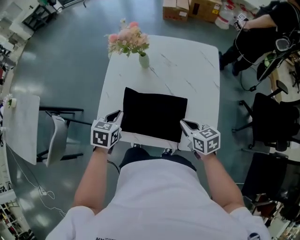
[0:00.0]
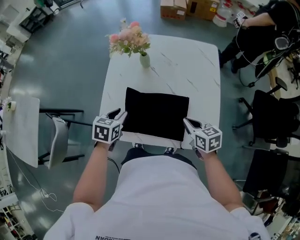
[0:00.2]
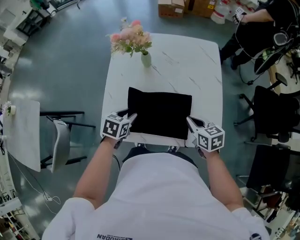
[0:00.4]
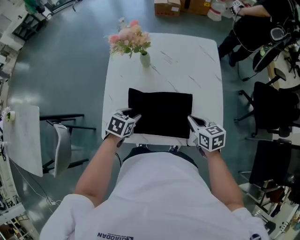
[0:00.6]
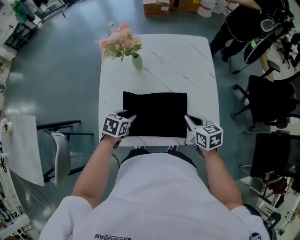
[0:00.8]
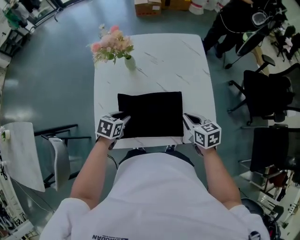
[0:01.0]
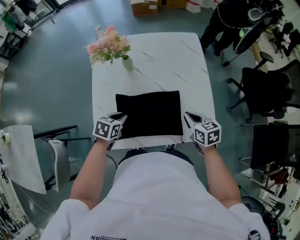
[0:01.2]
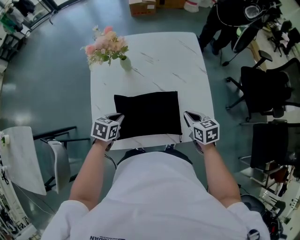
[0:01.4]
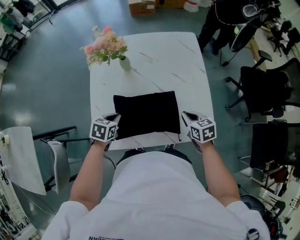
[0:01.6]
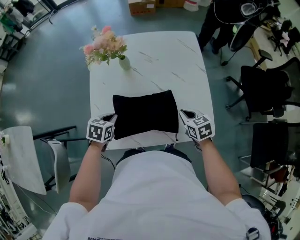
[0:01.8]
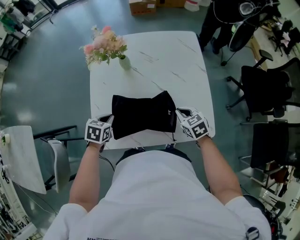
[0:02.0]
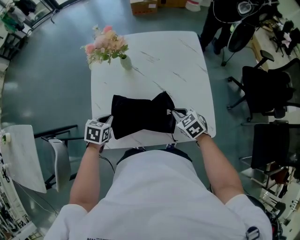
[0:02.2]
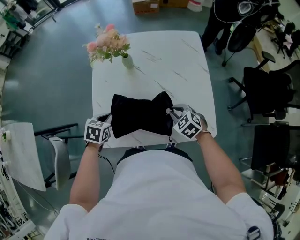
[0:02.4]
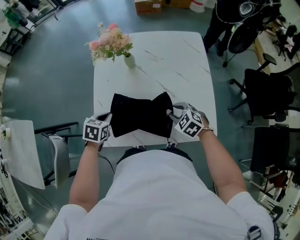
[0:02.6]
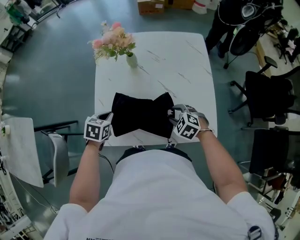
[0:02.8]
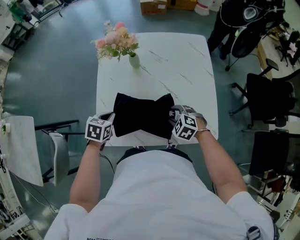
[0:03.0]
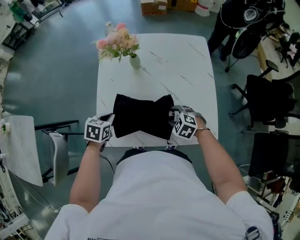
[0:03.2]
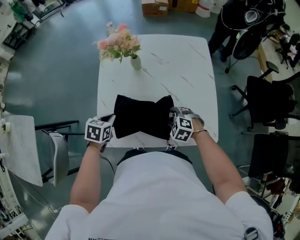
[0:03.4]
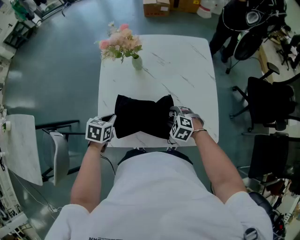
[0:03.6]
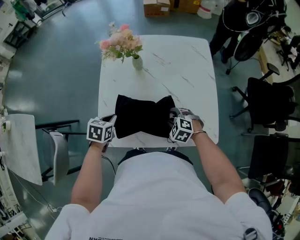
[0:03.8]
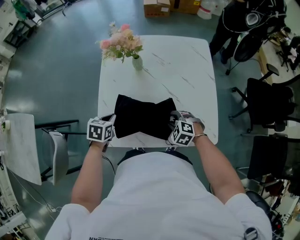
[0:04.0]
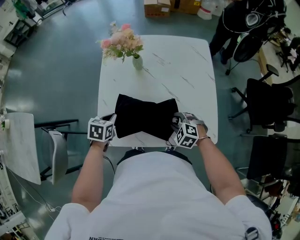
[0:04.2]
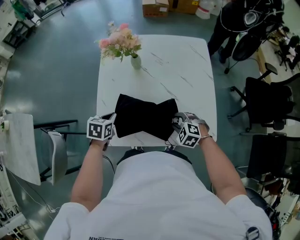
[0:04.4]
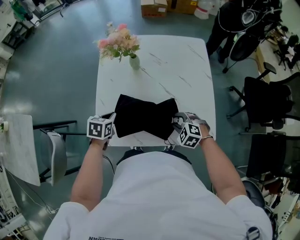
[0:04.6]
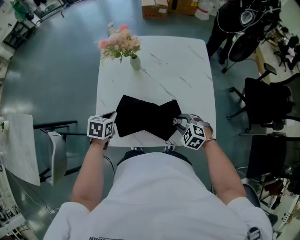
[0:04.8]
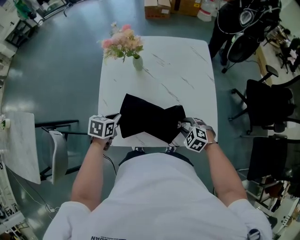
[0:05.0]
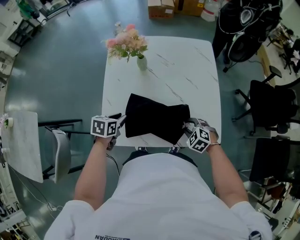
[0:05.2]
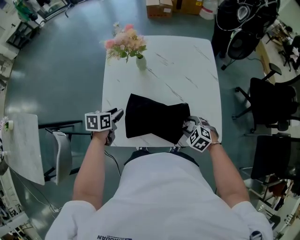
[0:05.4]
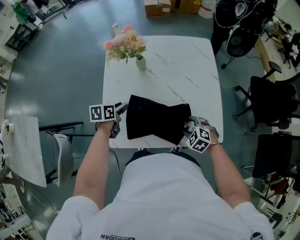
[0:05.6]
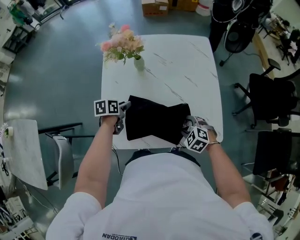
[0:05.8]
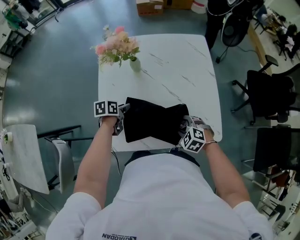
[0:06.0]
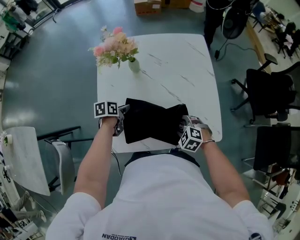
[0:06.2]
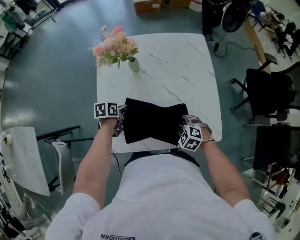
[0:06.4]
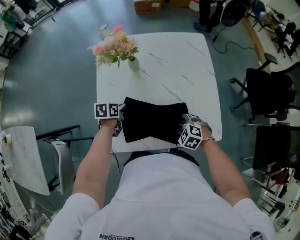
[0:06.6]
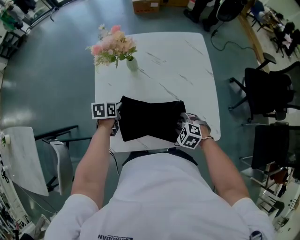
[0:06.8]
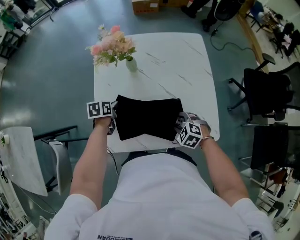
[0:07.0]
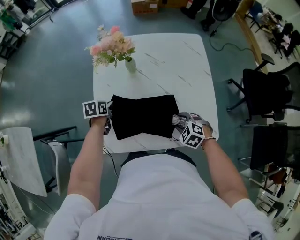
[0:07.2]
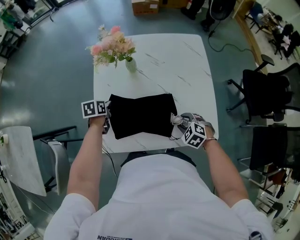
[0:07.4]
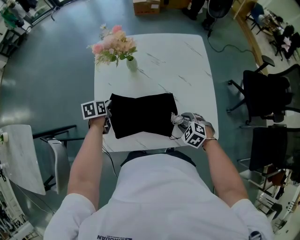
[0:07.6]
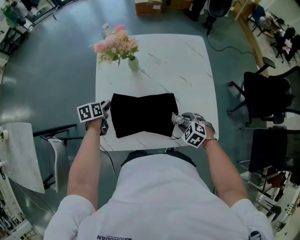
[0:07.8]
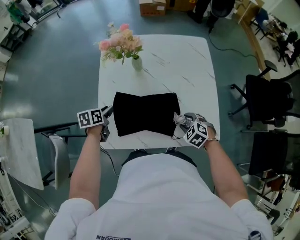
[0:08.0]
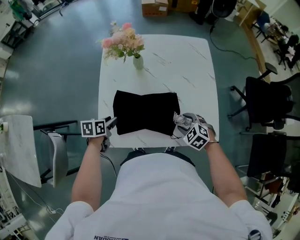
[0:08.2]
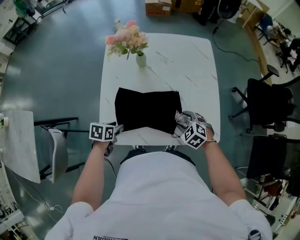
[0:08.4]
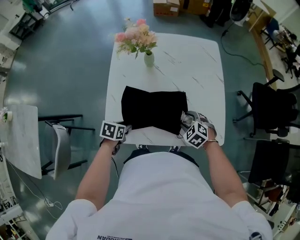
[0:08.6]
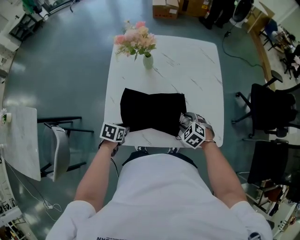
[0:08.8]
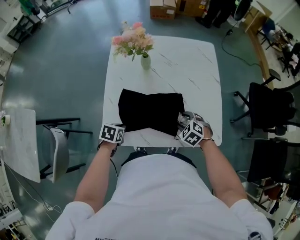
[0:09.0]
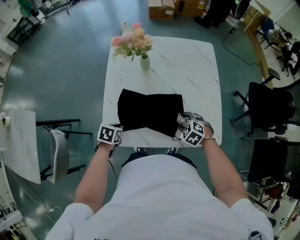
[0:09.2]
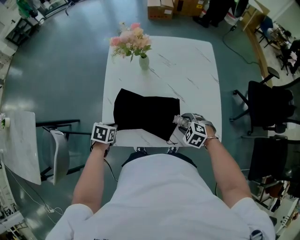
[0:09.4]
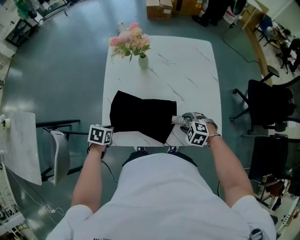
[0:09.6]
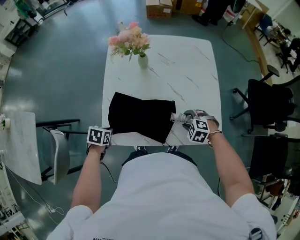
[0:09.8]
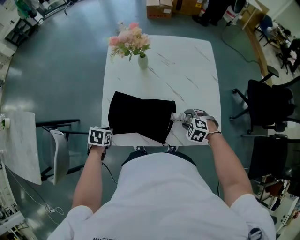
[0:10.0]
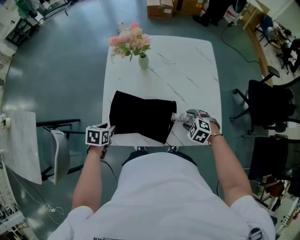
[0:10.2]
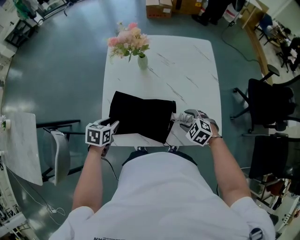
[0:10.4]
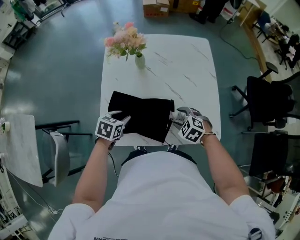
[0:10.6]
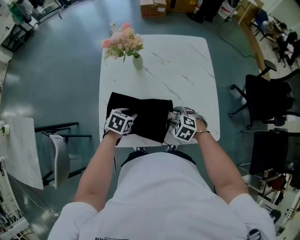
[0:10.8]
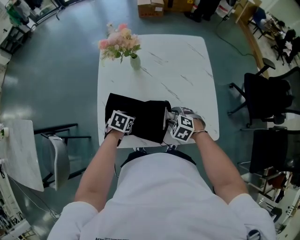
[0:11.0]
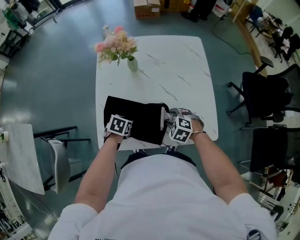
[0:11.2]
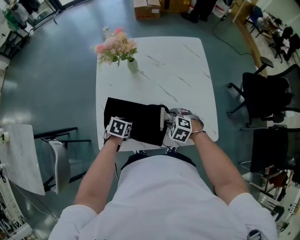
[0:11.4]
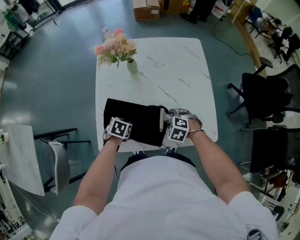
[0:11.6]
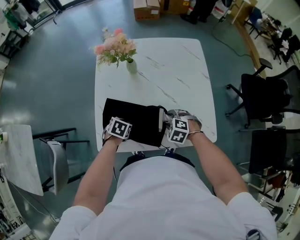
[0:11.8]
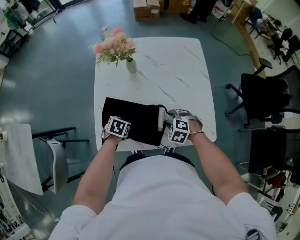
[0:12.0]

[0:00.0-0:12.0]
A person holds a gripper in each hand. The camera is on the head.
0:00.0 to 0:01.6: The right gripper ends up approximately 5 cm from where it was. The left gripper moves downward, roughly 5 cm, rotates roughly 20 degrees, and opens, then closes once more.
0:01.6 to 0:03.0: The left gripper shifts about 5 cm to the left. Meanwhile the right gripper heads to the left, covering roughly 10 cm, rotates around the line of its fingers by approximately 50 degrees, counterclockwise from behind, and opens its fingers.
0:03.0 to 0:04.4: The grippers move only a little.
0:04.4 to 0:06.0: The left gripper shifts approximately 10 cm forward and downward, swivels approximately 30 degrees, and opens.
0:06.0 to 0:07.6: The left gripper moves to the left, roughly 5 cm, and closes its fingers.
0:07.6 to 0:09.0: The left gripper goes about 15 cm backward, turns by some 20 degrees, and opens, then closes once more.
0:09.0 to 0:10.4: The left gripper moves upward, about 5 cm, and opens.
0:10.4 to 0:12.0: The right gripper ends up approximately 5 cm from where it was. The left gripper is displaced to the right and downward by some 10 cm, and closes.

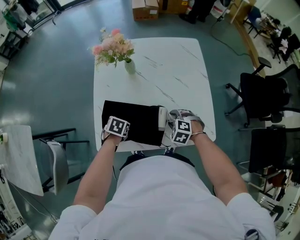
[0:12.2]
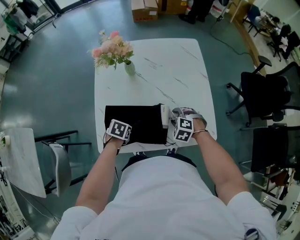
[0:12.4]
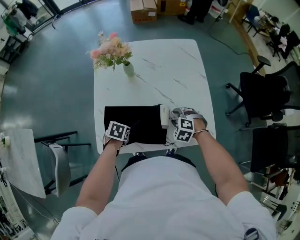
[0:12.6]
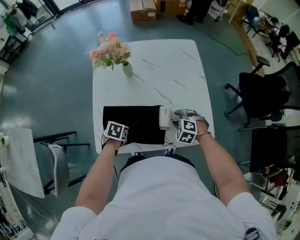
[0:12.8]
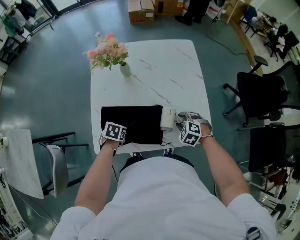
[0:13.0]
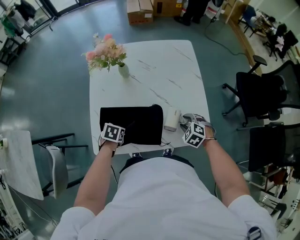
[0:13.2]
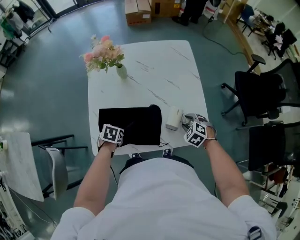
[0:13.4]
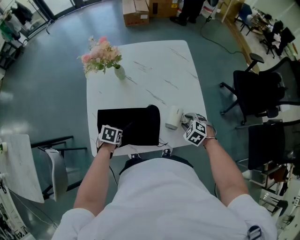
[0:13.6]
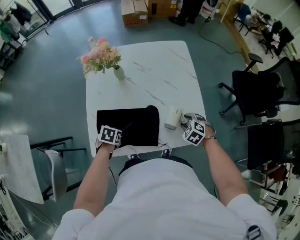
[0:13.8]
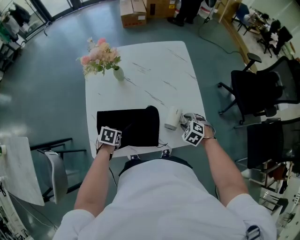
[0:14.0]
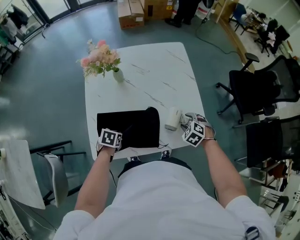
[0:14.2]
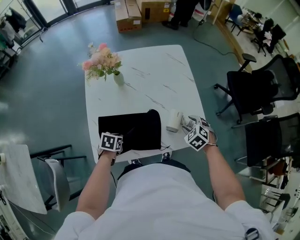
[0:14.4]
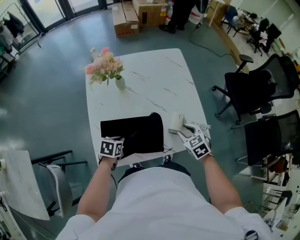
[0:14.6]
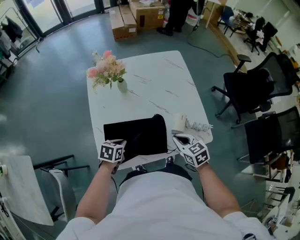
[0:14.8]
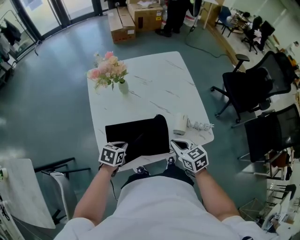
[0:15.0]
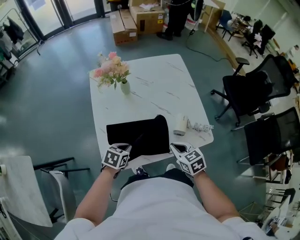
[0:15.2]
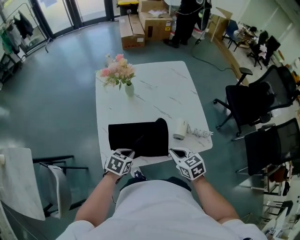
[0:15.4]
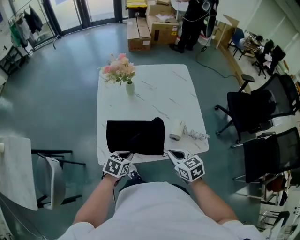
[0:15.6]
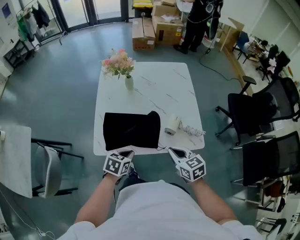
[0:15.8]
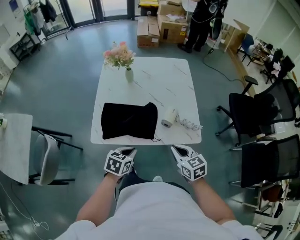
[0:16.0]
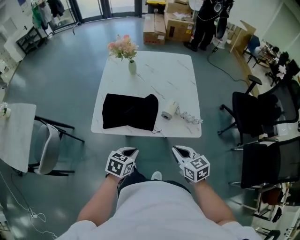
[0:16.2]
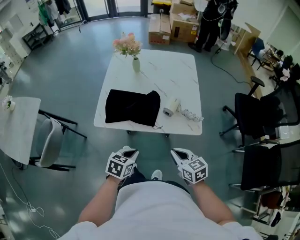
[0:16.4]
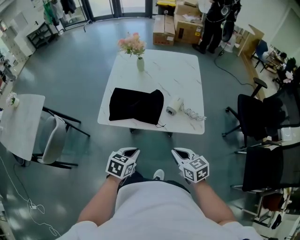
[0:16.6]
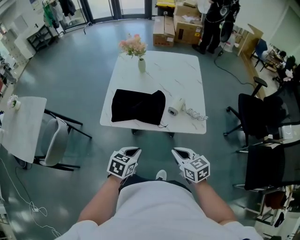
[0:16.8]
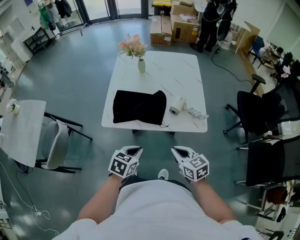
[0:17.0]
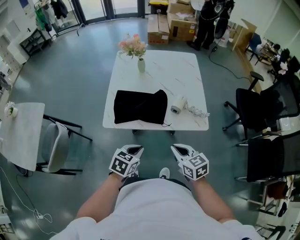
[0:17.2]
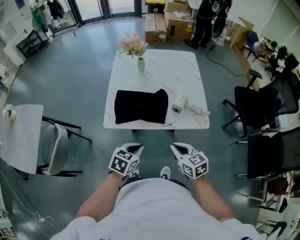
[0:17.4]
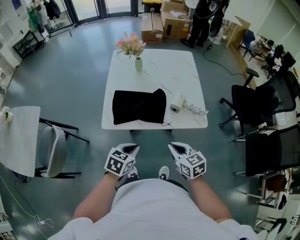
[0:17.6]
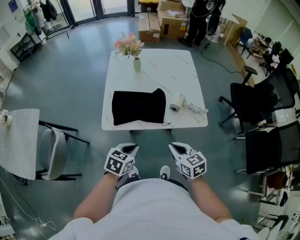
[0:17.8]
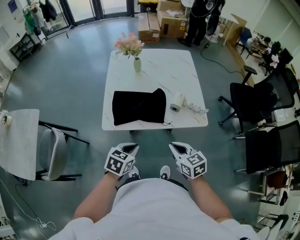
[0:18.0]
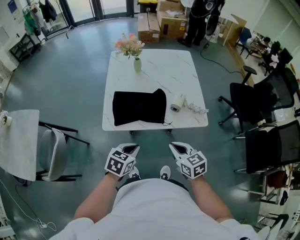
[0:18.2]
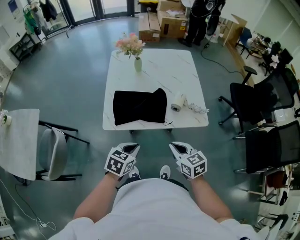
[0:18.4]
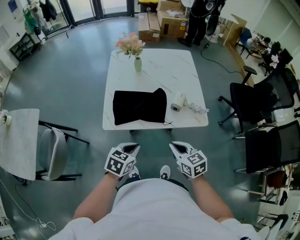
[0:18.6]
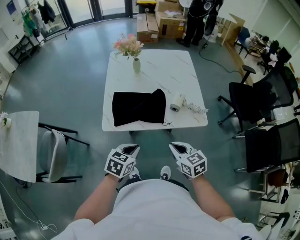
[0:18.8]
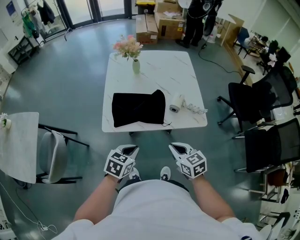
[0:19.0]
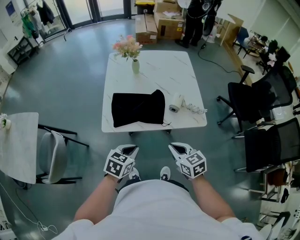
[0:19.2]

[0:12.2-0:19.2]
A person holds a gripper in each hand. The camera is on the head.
0:12.2 to 0:13.6: The right gripper heads to the right, covering roughly 10 cm.
0:13.6 to 0:15.0: The left gripper heads upward, covering some 5 cm, and swivels roughly 20 degrees. The right gripper moves to the left, upward and backward, about 20 cm, rolls clockwise, seen from behind, by approximately 40 degrees, and closes.
0:15.0 to 0:16.4: The grippers both shift backward and to the right by roughly 25 cm.
0:16.4 to 0:17.8: Both grippers travel together to the left, about 10 cm.
0:17.8 to 0:19.2: The two grippers keep their place.

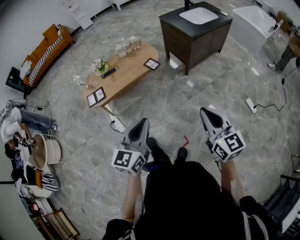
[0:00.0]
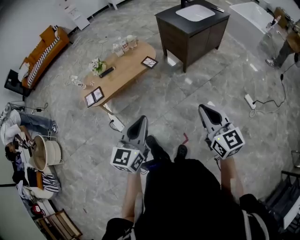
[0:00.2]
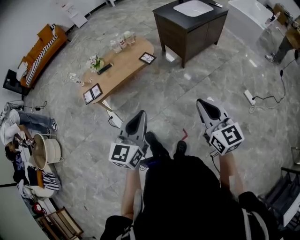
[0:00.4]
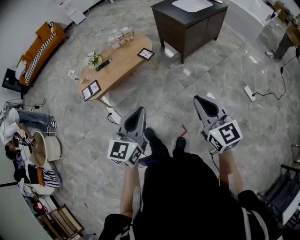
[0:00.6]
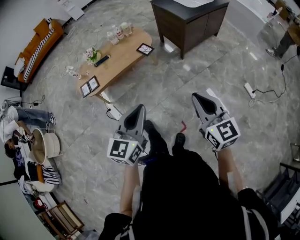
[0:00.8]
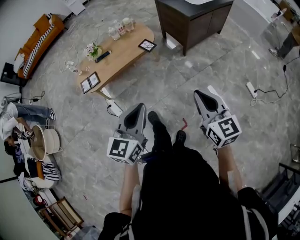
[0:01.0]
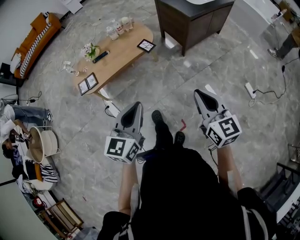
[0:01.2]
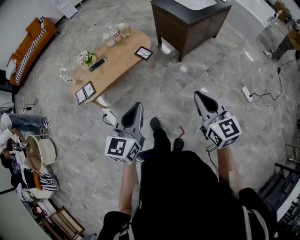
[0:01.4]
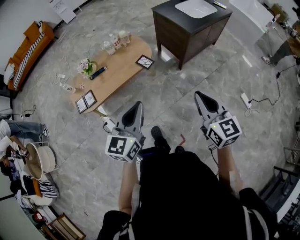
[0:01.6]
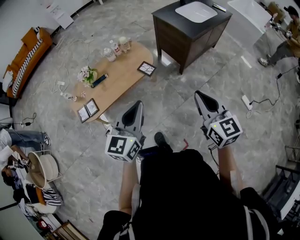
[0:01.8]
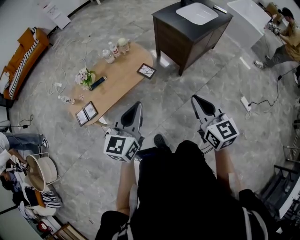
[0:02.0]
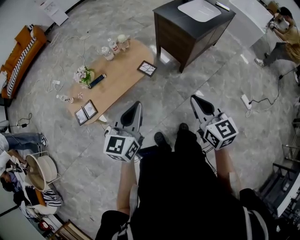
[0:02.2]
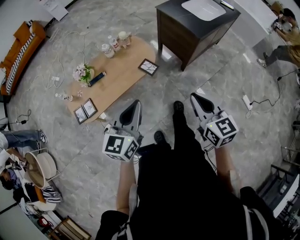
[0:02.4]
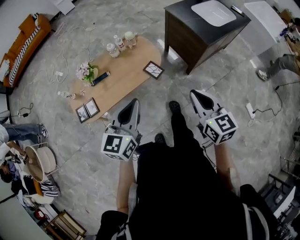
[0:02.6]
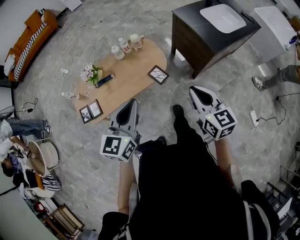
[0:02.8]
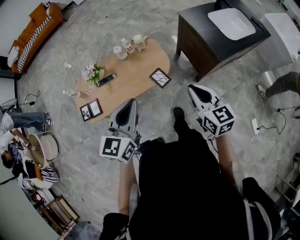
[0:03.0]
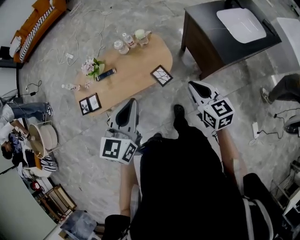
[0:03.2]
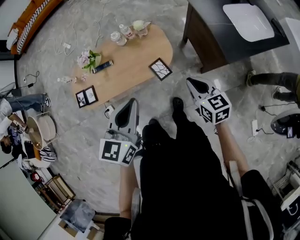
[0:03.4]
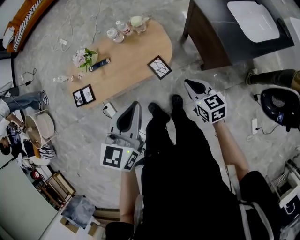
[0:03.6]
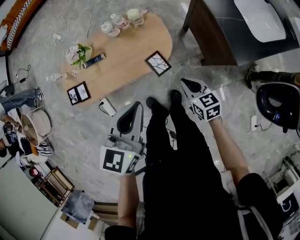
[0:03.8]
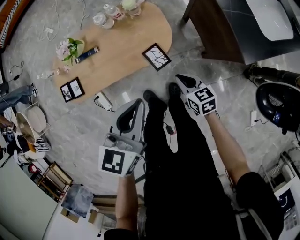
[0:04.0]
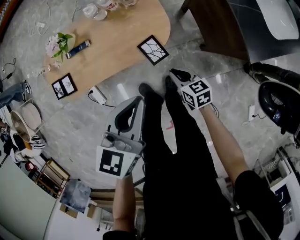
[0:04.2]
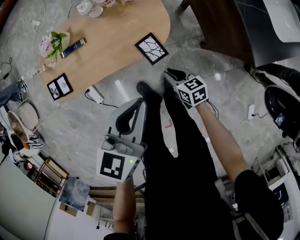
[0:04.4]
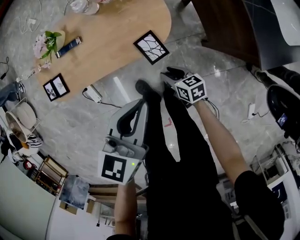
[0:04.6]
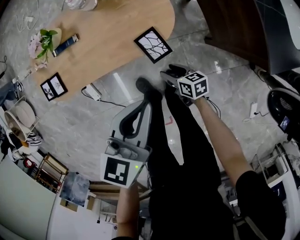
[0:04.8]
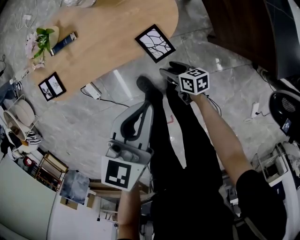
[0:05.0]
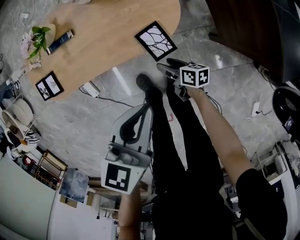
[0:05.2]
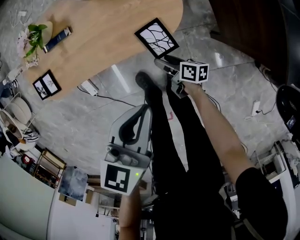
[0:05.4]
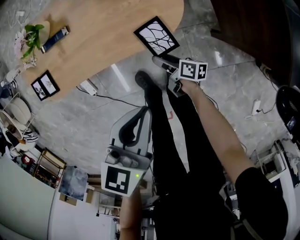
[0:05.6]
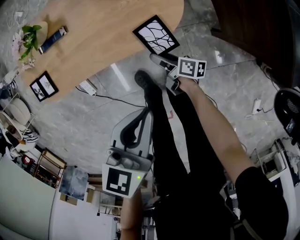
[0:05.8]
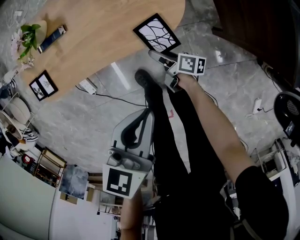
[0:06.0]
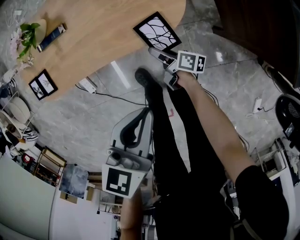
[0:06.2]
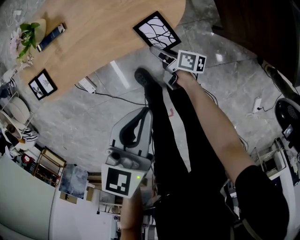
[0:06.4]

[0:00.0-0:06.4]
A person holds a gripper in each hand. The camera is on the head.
0:00.0 to 0:01.6: The grippers both shift forward by roughly 20 cm.
0:01.6 to 0:03.2: The grippers both shift forward by roughly 40 cm. The right gripper rotates roughly 30 degrees.
0:03.2 to 0:04.8: The right gripper goes roughly 50 cm downward, turns by some 40 degrees, and opens; the left gripper shifts some 25 cm downward, and turns by roughly 20 degrees.
0:04.8 to 0:06.4: The right gripper is displaced downward and forward by roughly 10 cm, and rotates approximately 40 degrees. Meanwhile the left gripper moves downward, some 10 cm.
